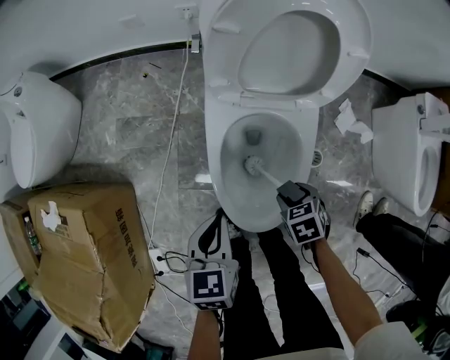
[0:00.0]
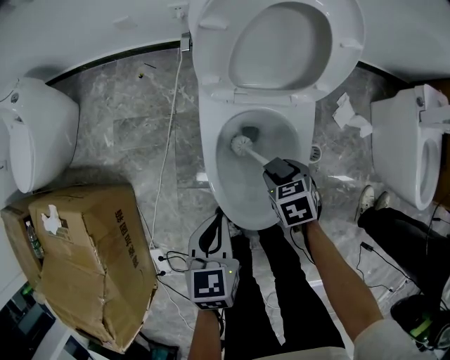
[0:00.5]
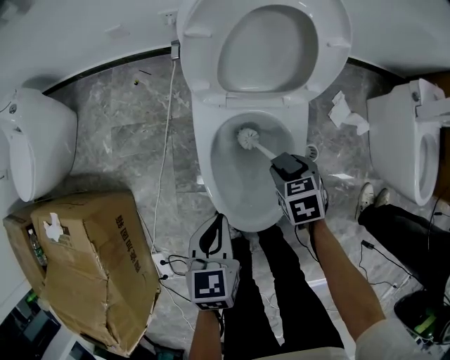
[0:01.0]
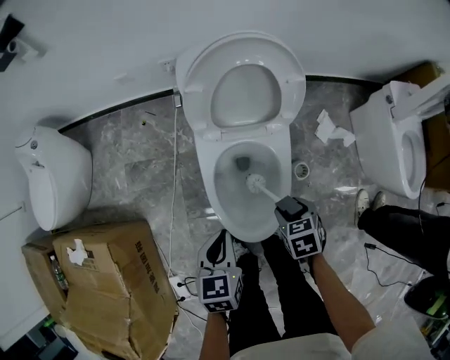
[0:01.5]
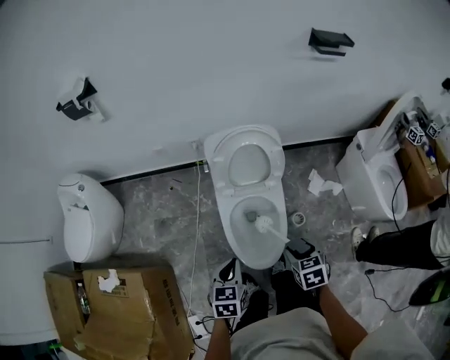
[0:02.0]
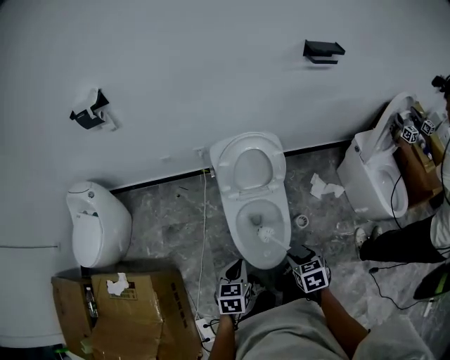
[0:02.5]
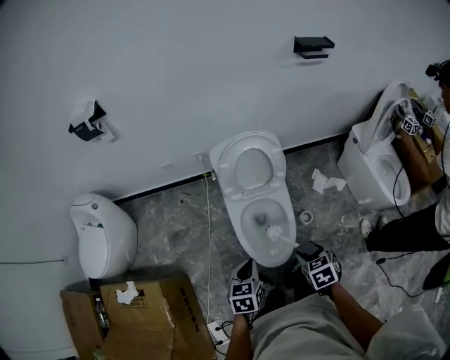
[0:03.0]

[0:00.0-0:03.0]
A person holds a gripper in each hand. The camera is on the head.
0:00.0 to 0:01.5: The left gripper travels upward by about 5 cm, while the right gripper travels upward by about 10 cm.
0:01.5 to 0:03.0: The right gripper shifts approximately 25 cm upward and backward; the left gripper heads upward and backward, covering approximately 15 cm.

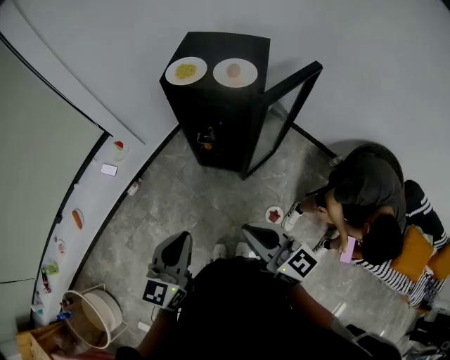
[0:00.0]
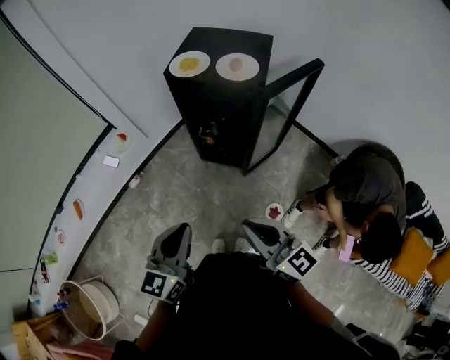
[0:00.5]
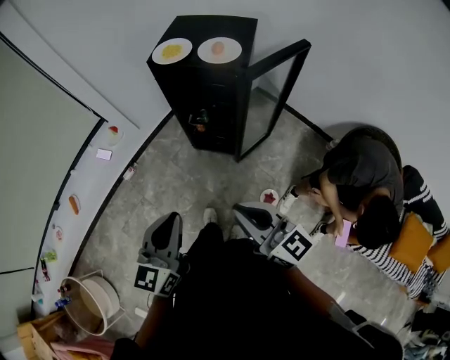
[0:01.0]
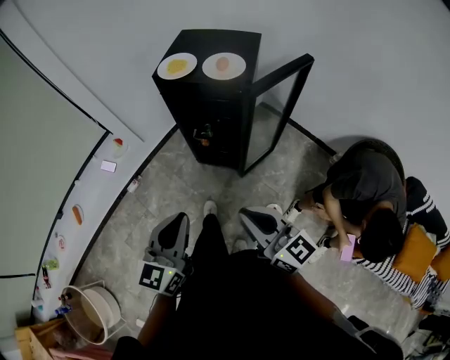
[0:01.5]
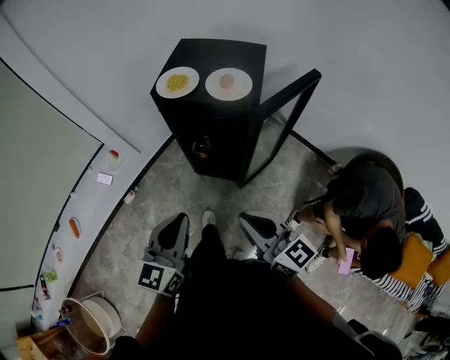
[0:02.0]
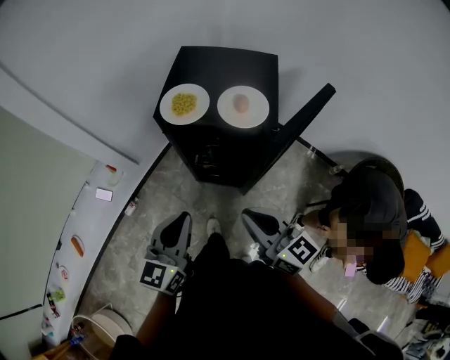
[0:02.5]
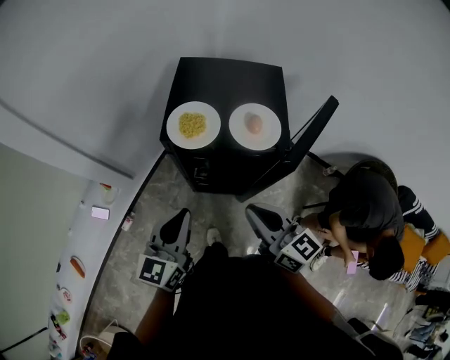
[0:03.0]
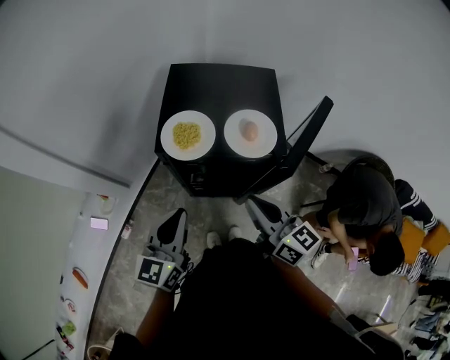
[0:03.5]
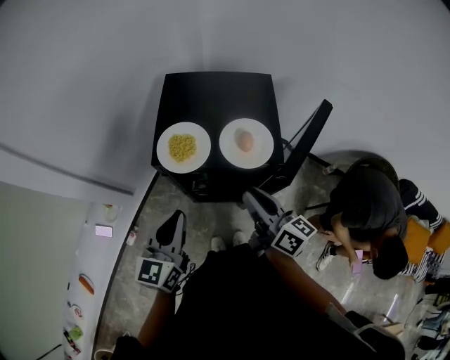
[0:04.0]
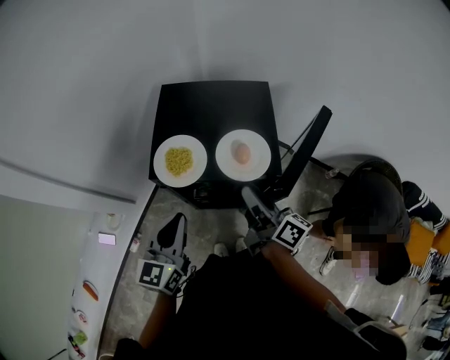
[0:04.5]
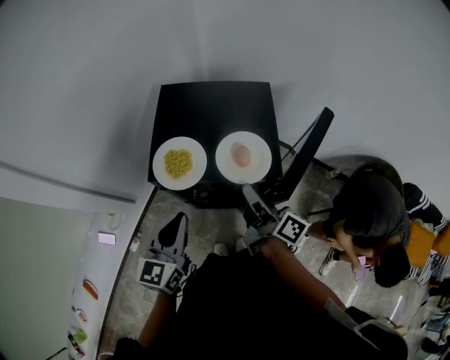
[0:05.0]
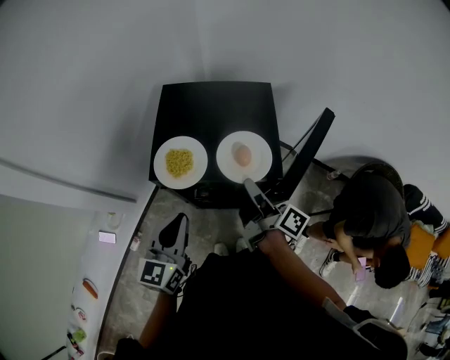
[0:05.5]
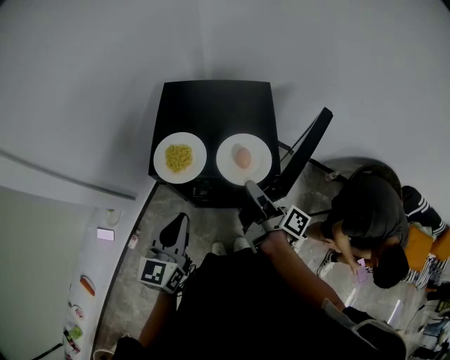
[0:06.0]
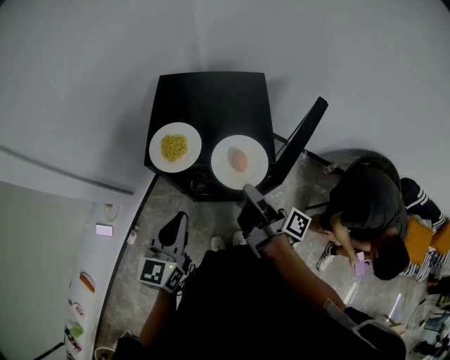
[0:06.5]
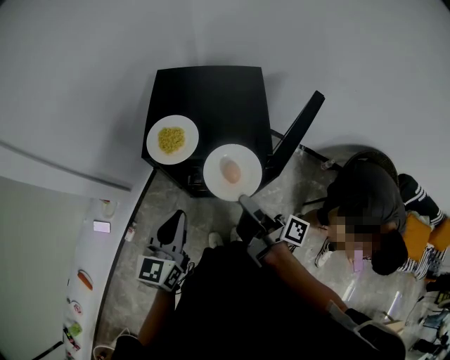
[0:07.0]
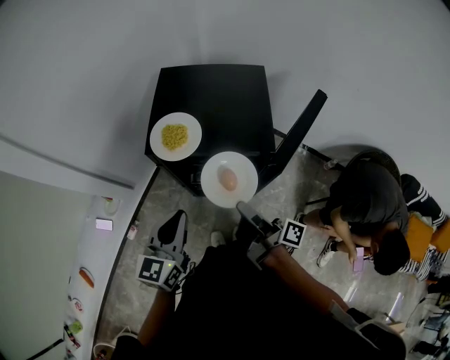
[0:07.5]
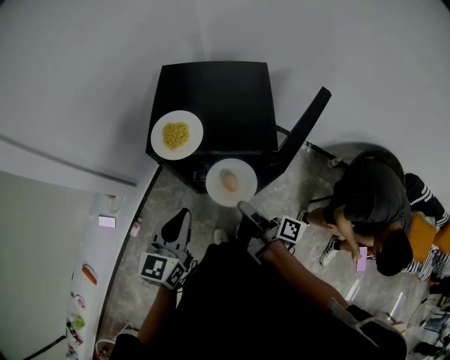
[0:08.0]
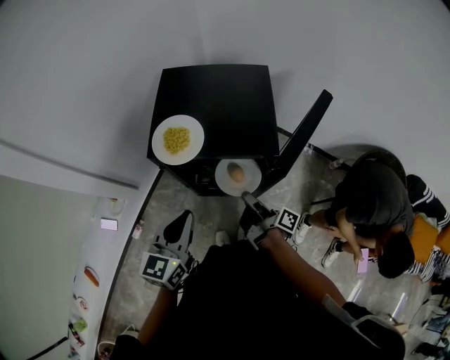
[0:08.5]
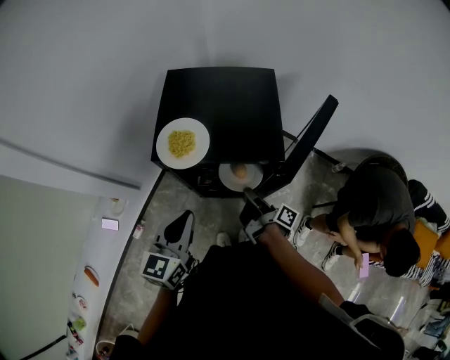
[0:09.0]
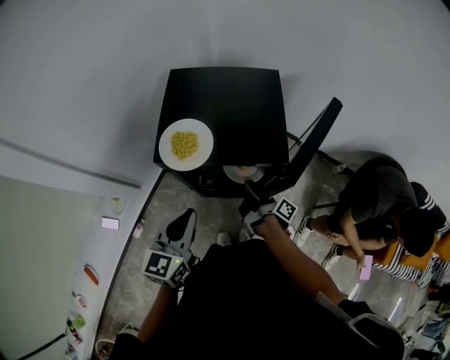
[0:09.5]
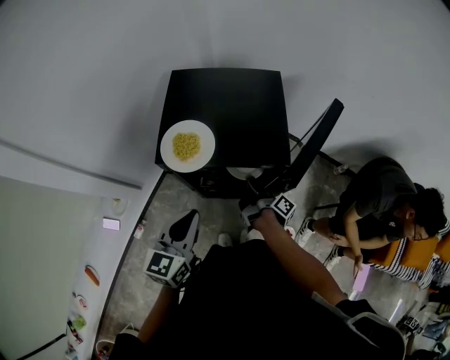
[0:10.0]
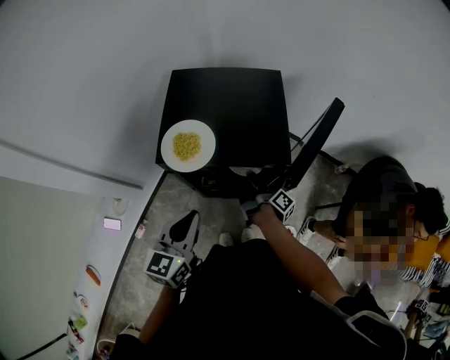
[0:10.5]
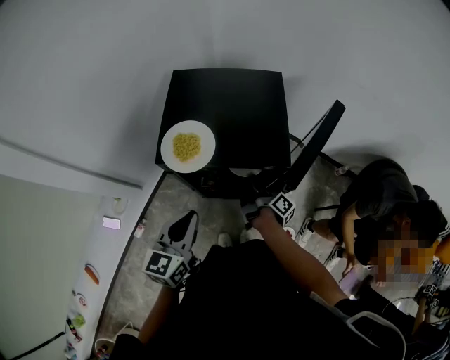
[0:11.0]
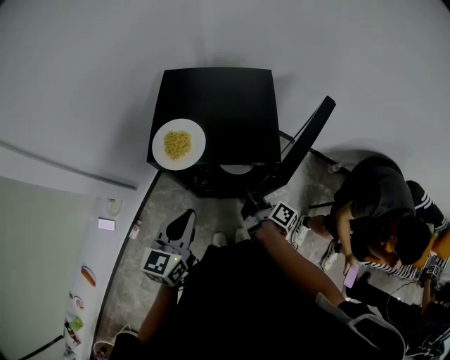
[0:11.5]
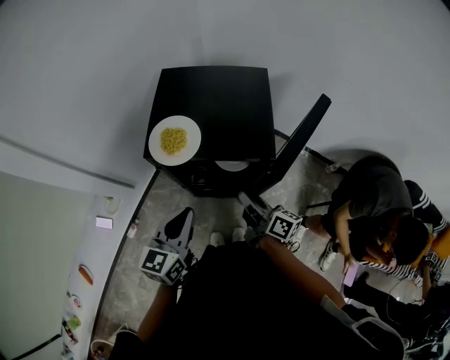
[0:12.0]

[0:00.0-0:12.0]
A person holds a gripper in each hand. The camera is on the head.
0:00.0 to 0:02.0: The two grippers go some 10 cm forward.
0:02.0 to 0:04.0: Both grippers travel together forward, some 30 cm. The right gripper changes its angle by some 30 degrees.
0:04.0 to 0:06.0: The right gripper goes roughly 5 cm forward, and rotates around the line of its fingers by about 40 degrees, clockwise from behind.
0:06.0 to 0:08.0: The right gripper is displaced backward and downward by some 15 cm.
0:08.0 to 0:10.0: The right gripper travels forward and downward by some 15 cm, and rotates approximately 20 degrees.
0:10.0 to 0:12.0: The right gripper moves upward and backward, roughly 15 cm, and rolls counterclockwise, seen from behind, by roughly 40 degrees.

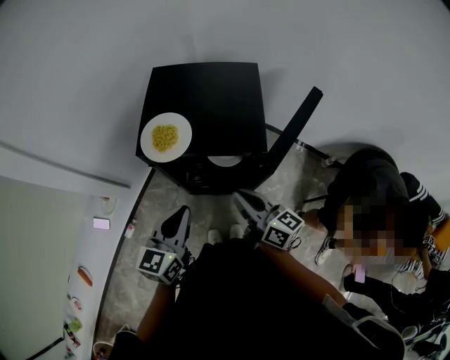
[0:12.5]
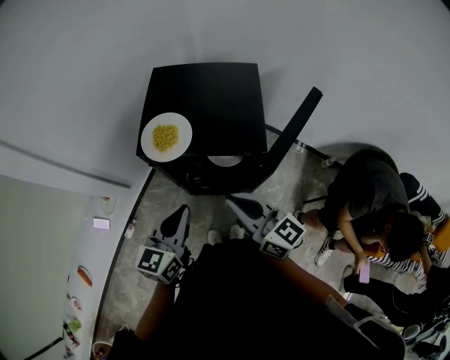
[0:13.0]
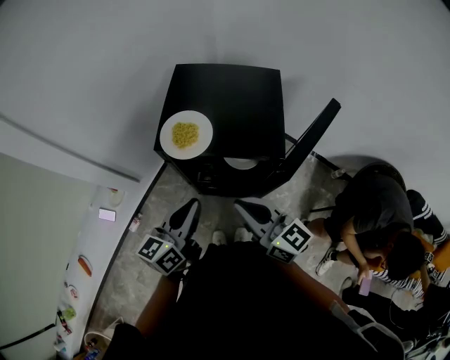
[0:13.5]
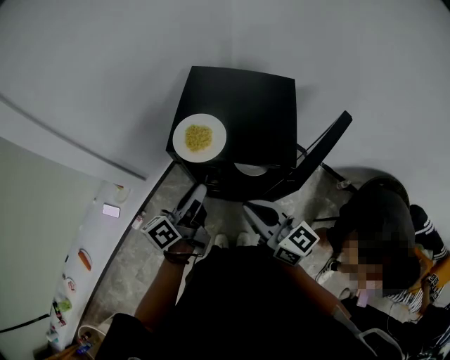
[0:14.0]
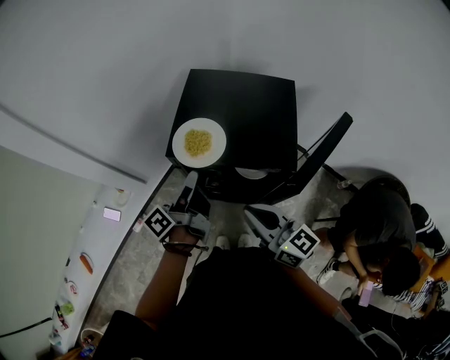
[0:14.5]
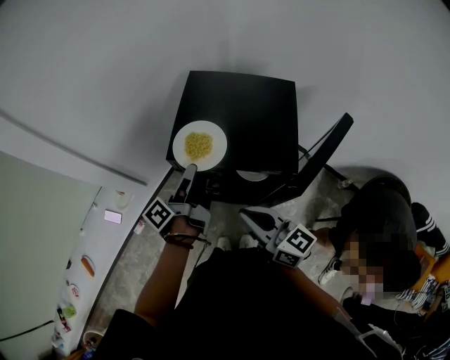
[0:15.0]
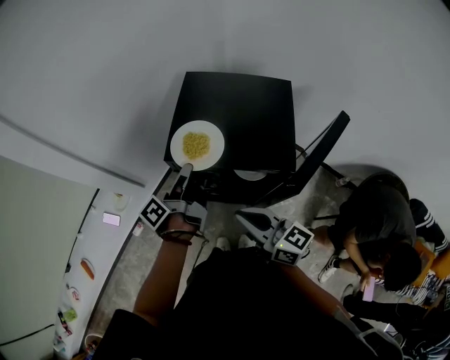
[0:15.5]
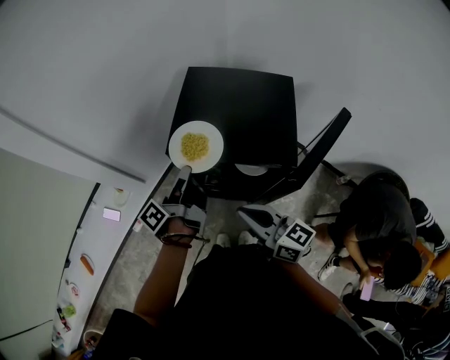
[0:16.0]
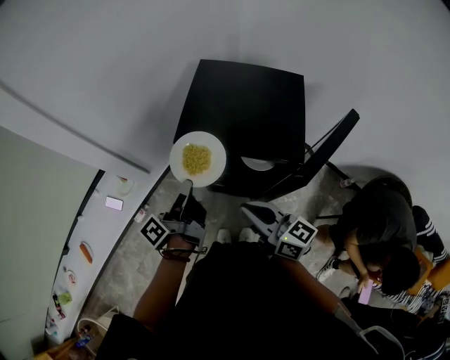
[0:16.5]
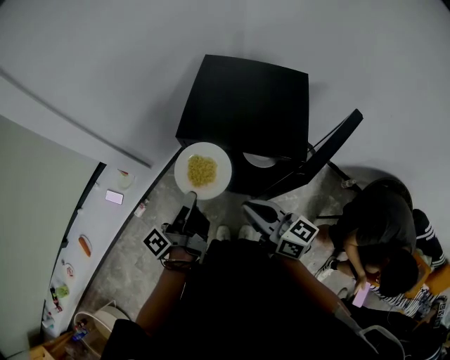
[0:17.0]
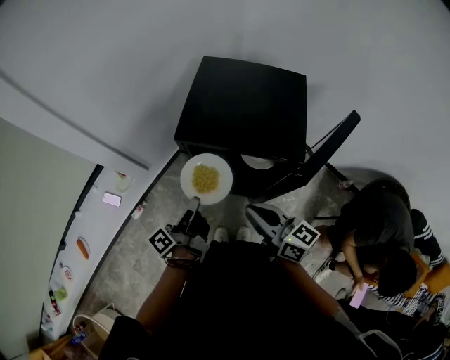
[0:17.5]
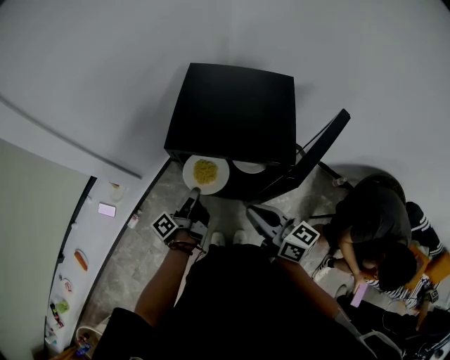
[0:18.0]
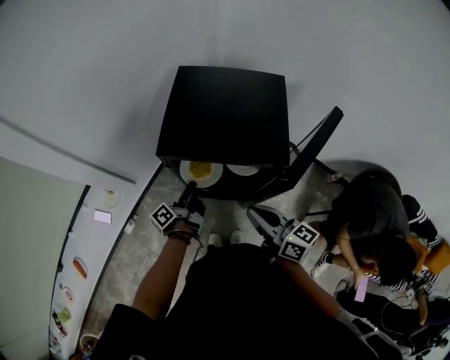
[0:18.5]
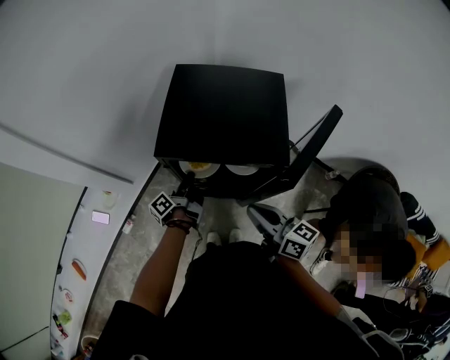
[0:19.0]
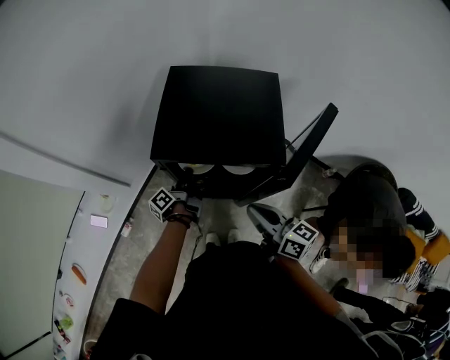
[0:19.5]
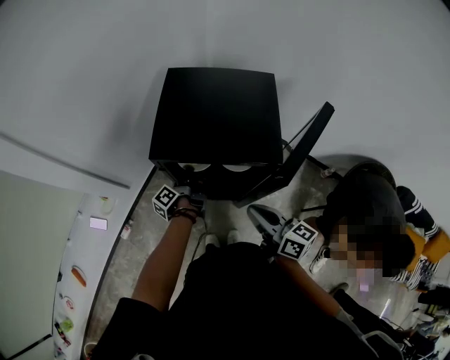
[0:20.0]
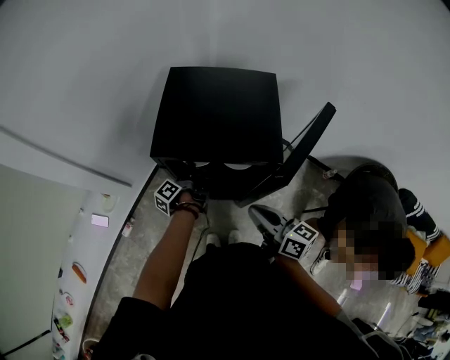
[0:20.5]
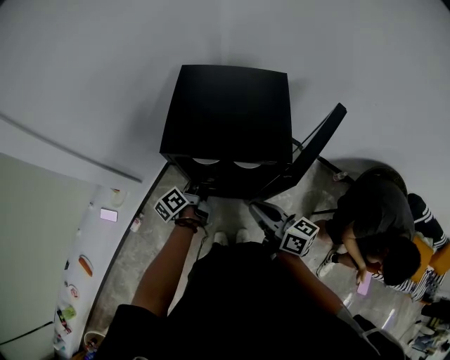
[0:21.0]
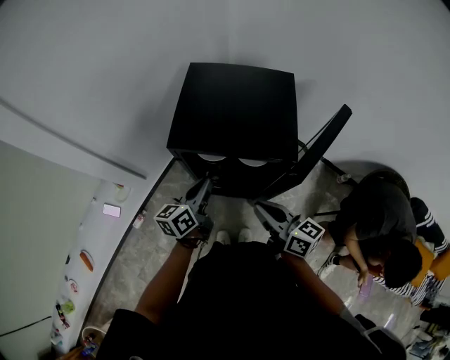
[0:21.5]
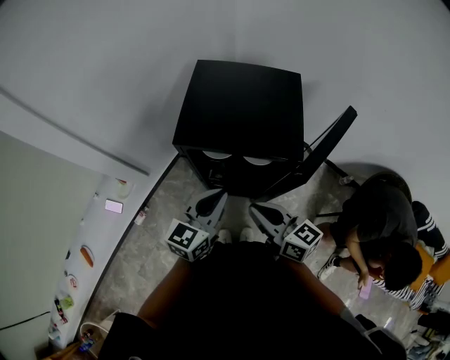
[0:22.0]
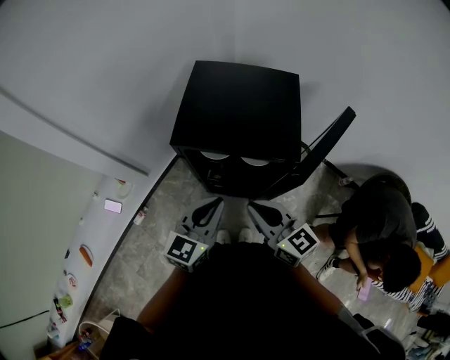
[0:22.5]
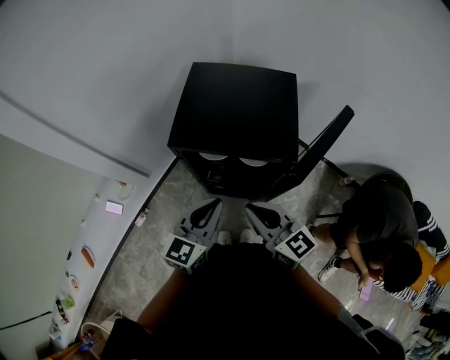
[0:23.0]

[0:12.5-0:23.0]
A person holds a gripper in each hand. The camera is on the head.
0:12.5 to 0:14.5: The right gripper heads upward and to the left, covering approximately 10 cm. The left gripper goes roughly 10 cm forward, rotates around the line of its fingers by some 60 degrees, counterclockwise from behind, and opens its fingers.
0:14.5 to 0:16.5: The left gripper goes roughly 5 cm to the left, and closes.
0:16.5 to 0:19.0: The right gripper moves to the right, roughly 5 cm, while the left gripper heads downward and forward, covering roughly 20 cm.
0:19.0 to 0:21.0: The left gripper rotates approximately 20 degrees.
0:21.0 to 0:23.0: The left gripper heads upward and backward, covering some 20 cm, and rolls clockwise, seen from behind, by some 60 degrees; the right gripper heads upward, covering approximately 5 cm, and turns by some 30 degrees.

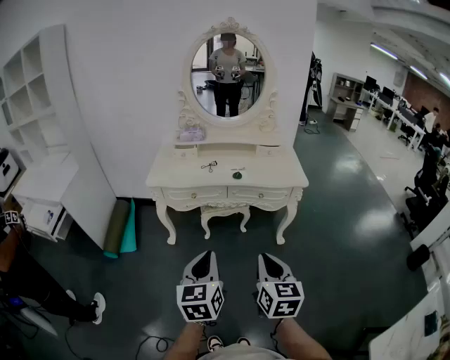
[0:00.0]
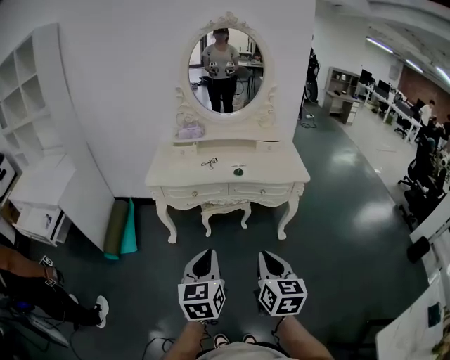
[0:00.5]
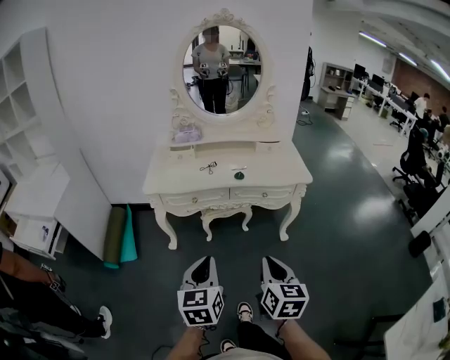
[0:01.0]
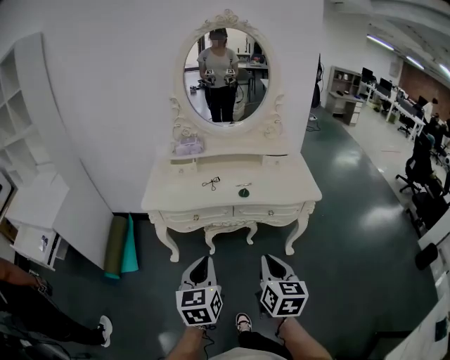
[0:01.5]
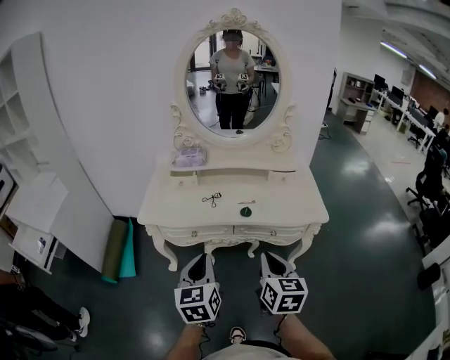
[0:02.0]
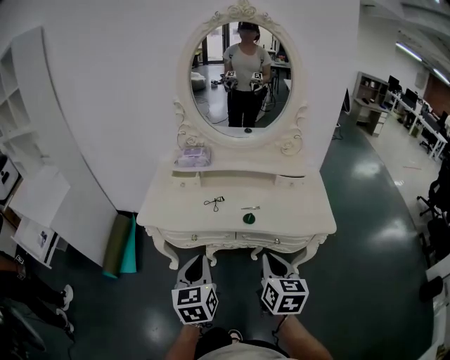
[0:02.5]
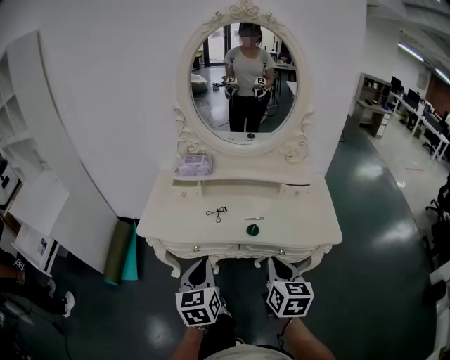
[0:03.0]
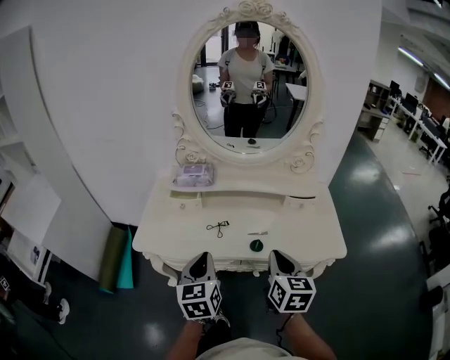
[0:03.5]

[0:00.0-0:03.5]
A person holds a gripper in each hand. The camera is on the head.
0:00.0 to 0:02.0: Both grippers move forward, some 25 cm.
0:02.0 to 0:03.5: The two grippers go approximately 20 cm forward.
